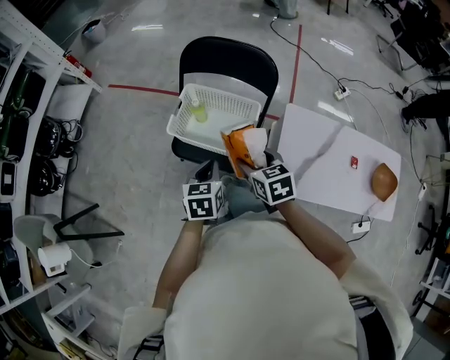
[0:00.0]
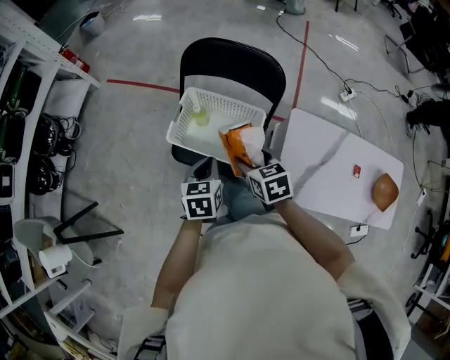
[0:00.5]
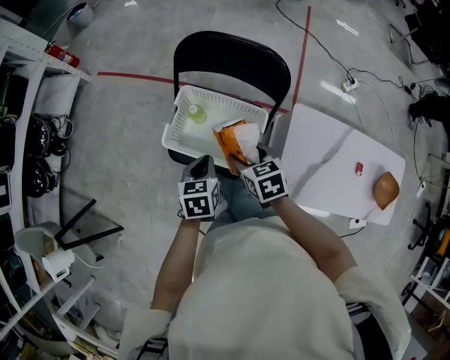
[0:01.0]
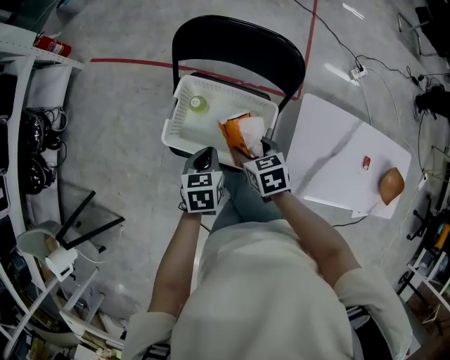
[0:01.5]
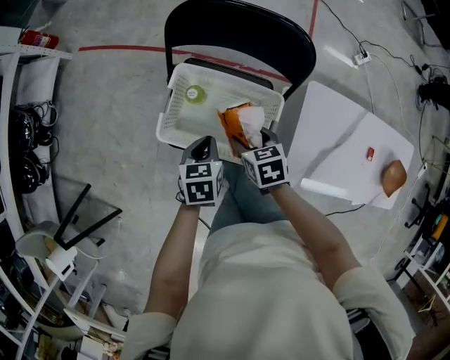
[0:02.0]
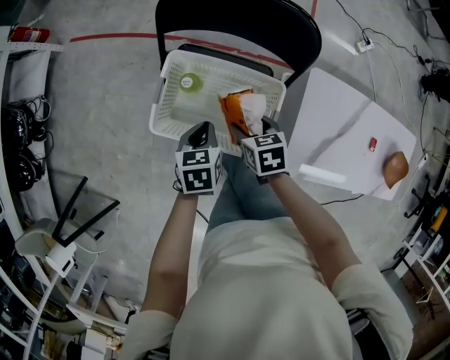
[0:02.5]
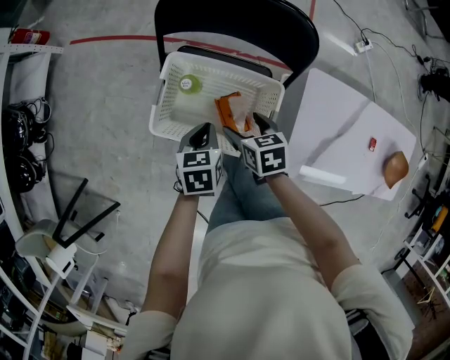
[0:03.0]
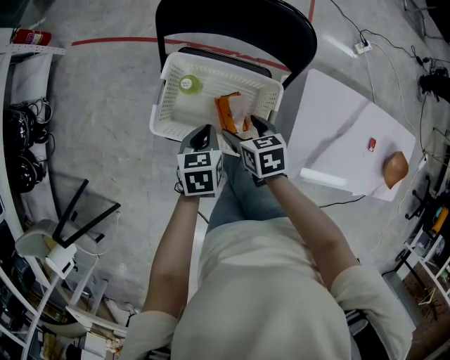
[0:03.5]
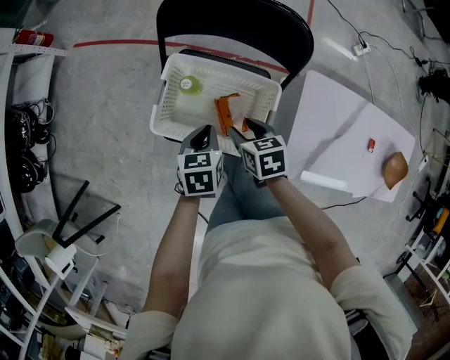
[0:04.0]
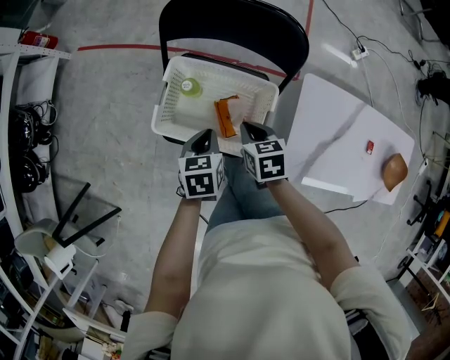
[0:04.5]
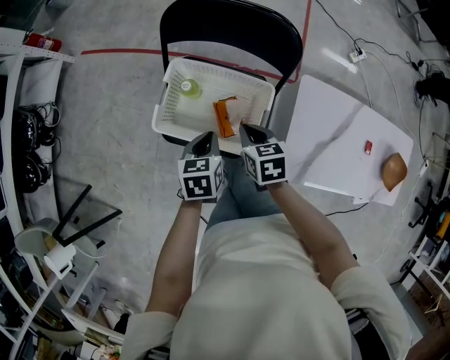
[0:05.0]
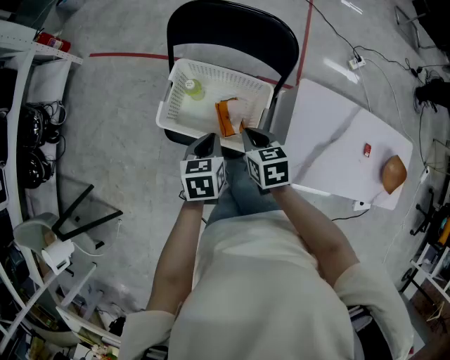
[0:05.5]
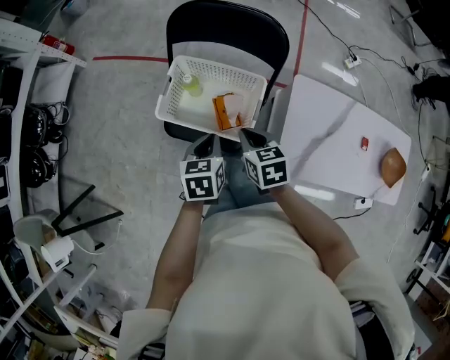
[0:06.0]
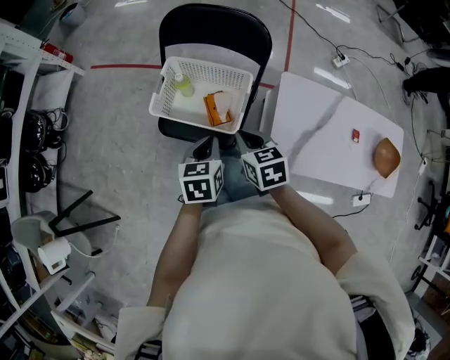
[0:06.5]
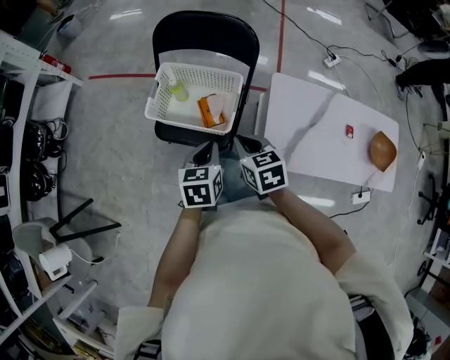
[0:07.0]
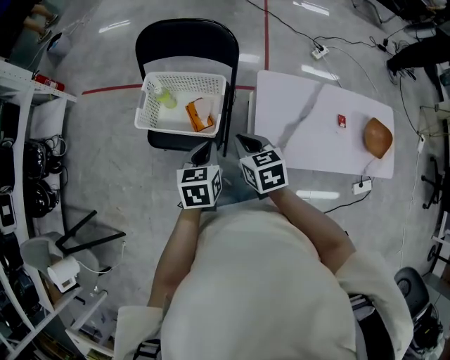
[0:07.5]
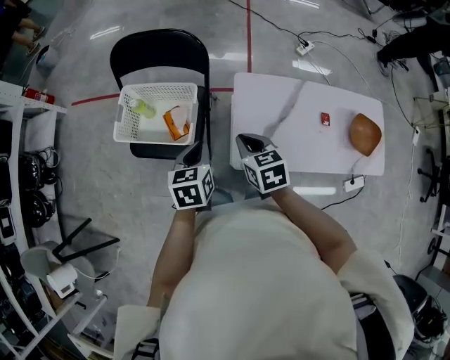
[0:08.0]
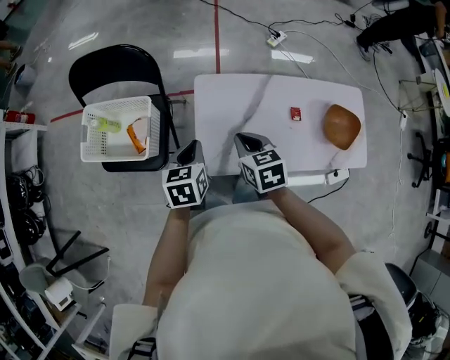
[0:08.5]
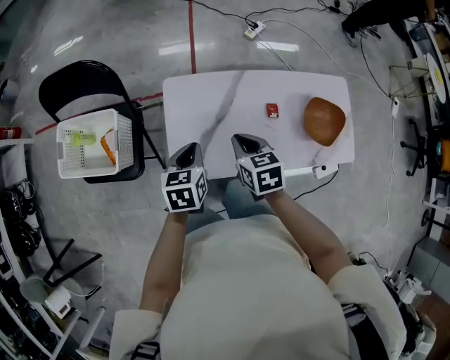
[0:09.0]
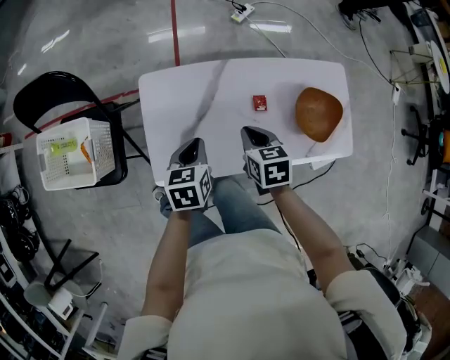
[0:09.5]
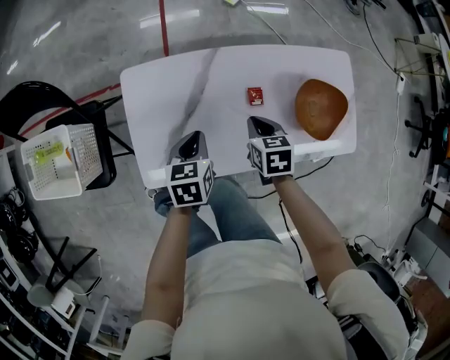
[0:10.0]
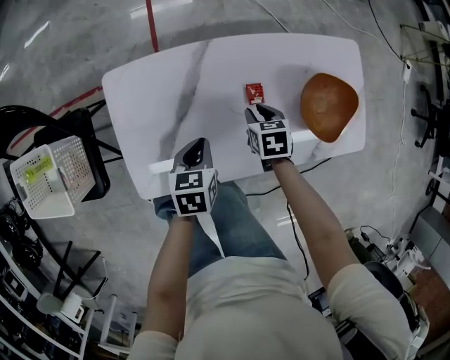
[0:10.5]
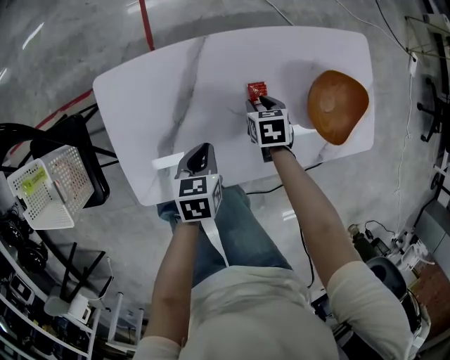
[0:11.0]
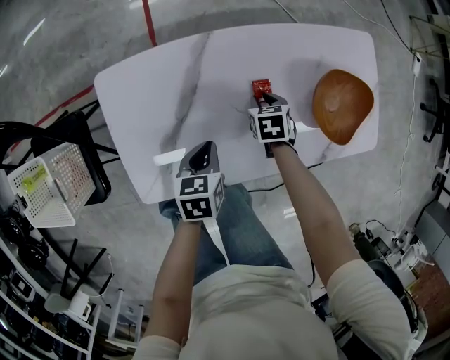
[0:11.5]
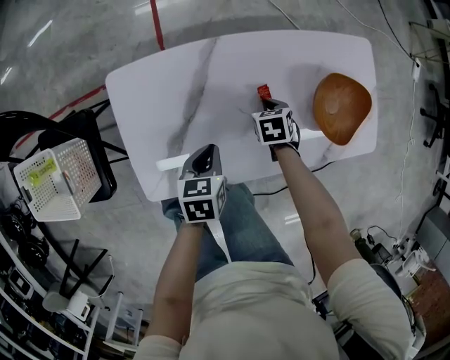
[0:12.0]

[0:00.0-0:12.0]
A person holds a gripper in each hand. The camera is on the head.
0.0 to 2.0 s: The right gripper shifts some 20 cm downward and forward; the left gripper shifts some 20 cm forward and downward.
2.0 to 4.0 s: The grippers make only small movements.
4.0 to 6.0 s: The left gripper heads backward and upward, covering about 10 cm; the right gripper is displaced upward and backward by roughly 10 cm, and closes its fingers.
6.0 to 8.0 s: The two grippers go approximately 20 cm to the right and backward.
8.0 to 10.0 s: Both grippers travel together to the right and downward, approximately 40 cm. The right gripper rotates about 30 degrees.
10.0 to 12.0 s: The left gripper goes some 10 cm downward, while the right gripper goes roughly 15 cm downward.

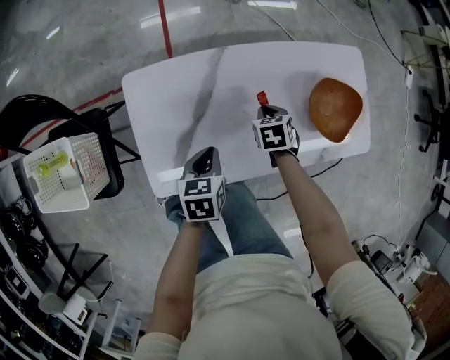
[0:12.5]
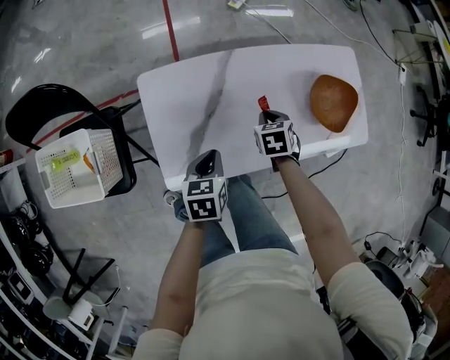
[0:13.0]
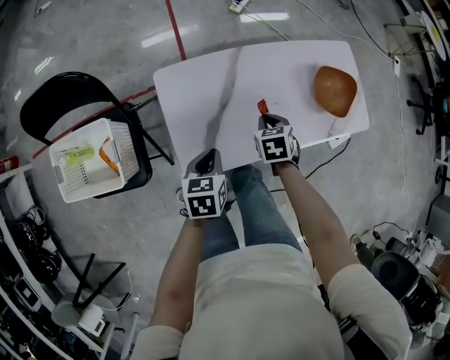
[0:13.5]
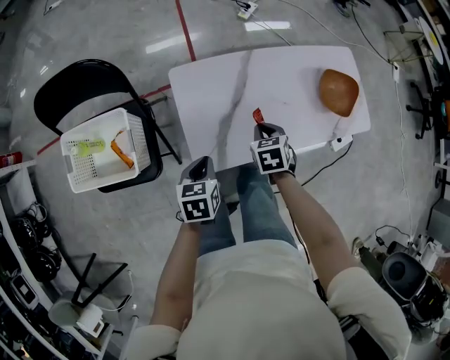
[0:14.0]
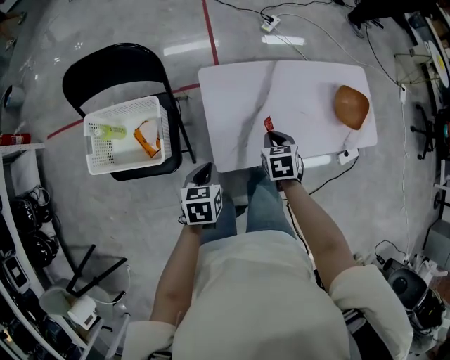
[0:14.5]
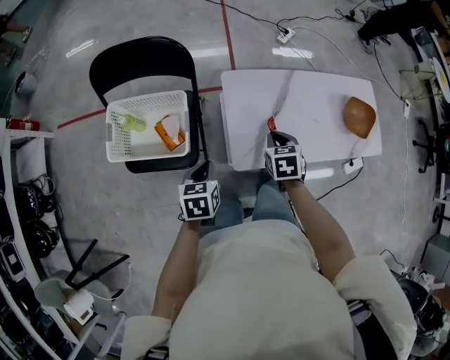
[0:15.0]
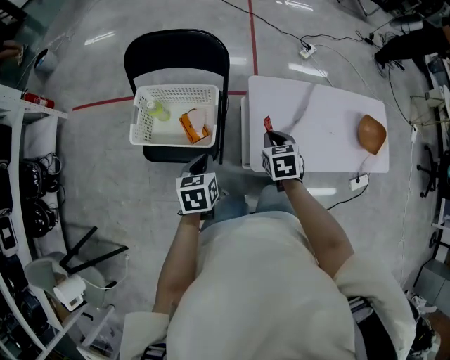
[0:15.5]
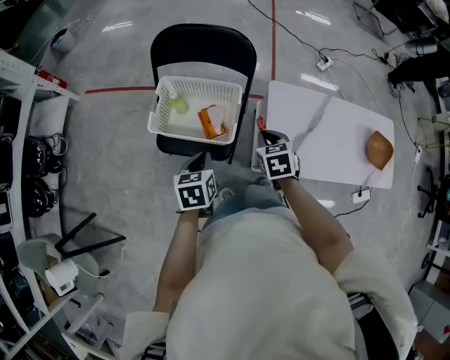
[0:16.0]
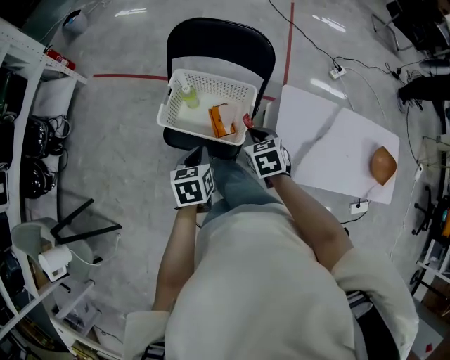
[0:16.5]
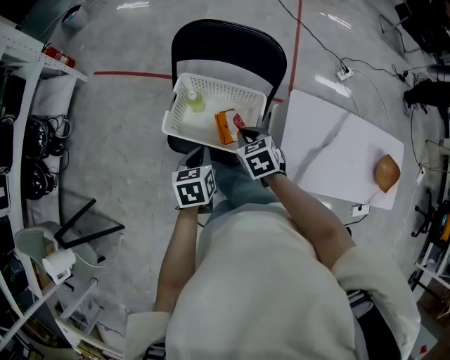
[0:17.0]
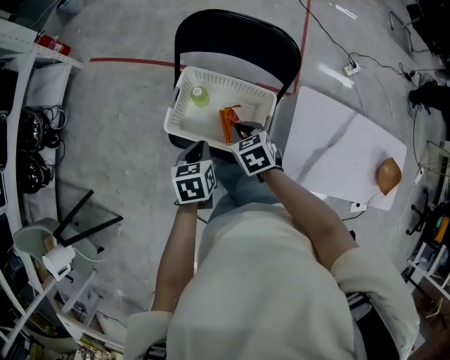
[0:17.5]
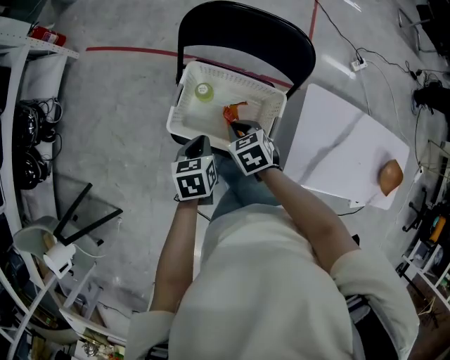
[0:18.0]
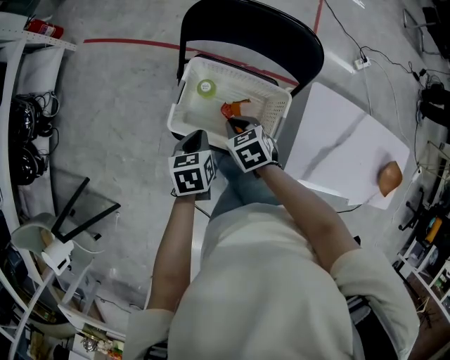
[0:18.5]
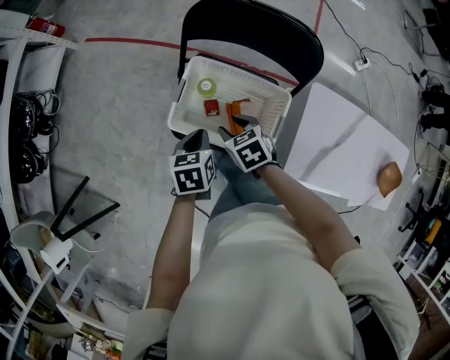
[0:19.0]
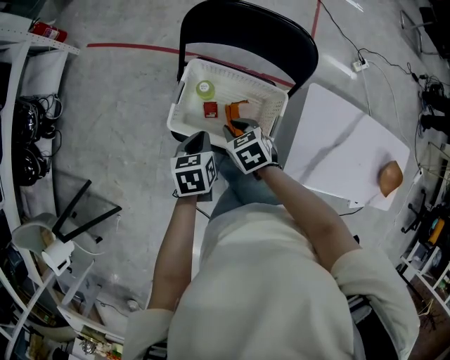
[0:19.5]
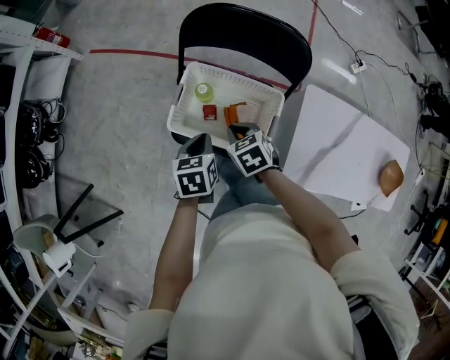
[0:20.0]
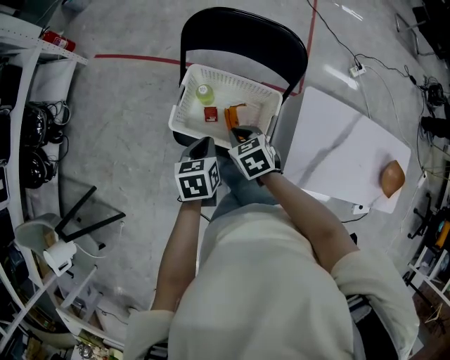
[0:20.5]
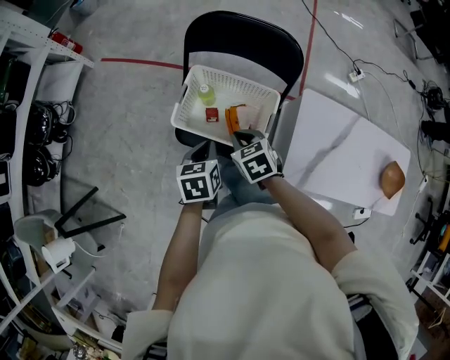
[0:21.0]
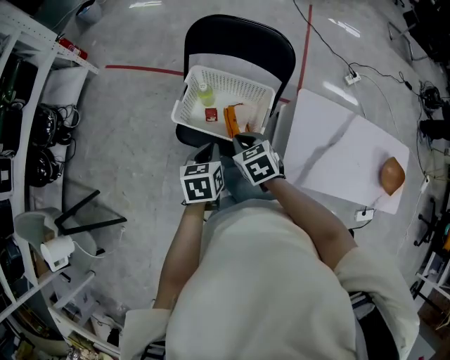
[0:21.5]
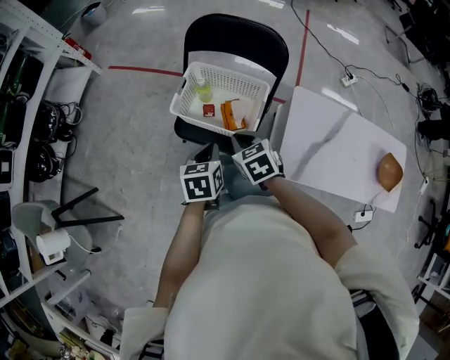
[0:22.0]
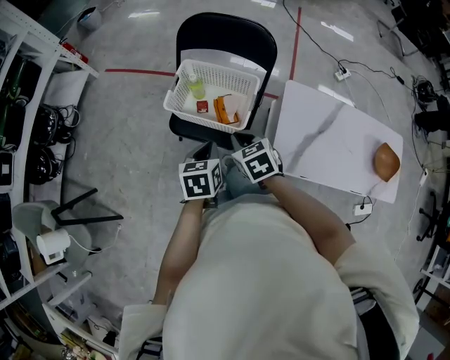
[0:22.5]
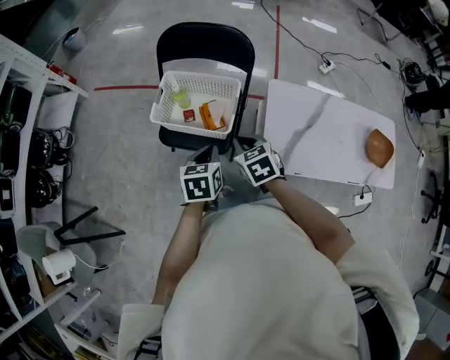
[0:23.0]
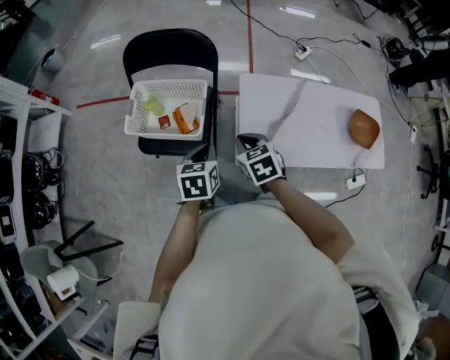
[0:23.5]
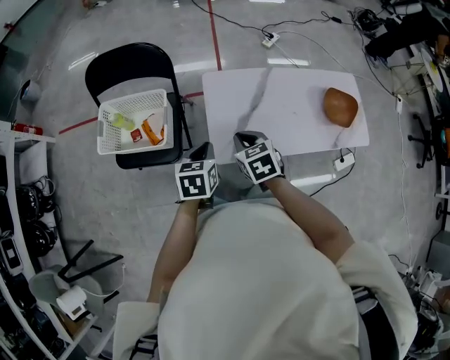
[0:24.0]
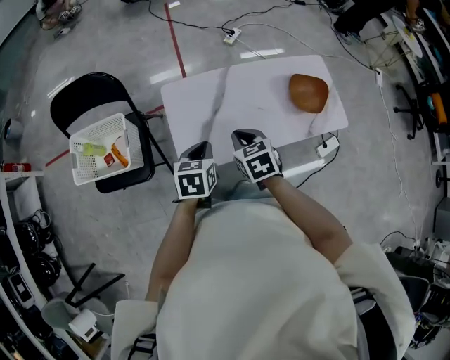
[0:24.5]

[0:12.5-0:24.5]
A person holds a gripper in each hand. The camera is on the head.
12.5 to 14.5 s: The grippers both shift to the left, backward and upward by some 35 cm.
14.5 to 16.5 s: The left gripper moves approximately 30 cm, and swivels approximately 30 degrees; the right gripper moves roughly 35 cm, and turns by approximately 30 degrees.
16.5 to 18.5 s: The left gripper heads forward, downward and to the left, covering approximately 15 cm. Meanwhile the right gripper is displaced to the left, forward and downward by some 20 cm.
18.5 to 20.5 s: The left gripper shifts by about 5 cm, while the right gripper changes place by about 5 cm, and opens and closes again.
20.5 to 22.5 s: The right gripper shifts about 15 cm backward and upward; the left gripper is displaced backward by approximately 15 cm.
22.5 to 24.5 s: The two grippers travel together, some 40 cm. The left gripper turns by approximately 30 degrees, while the right gripper swivels some 30 degrees.

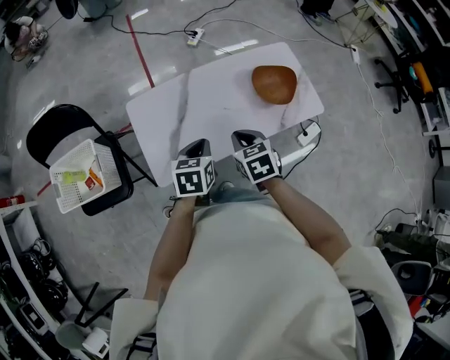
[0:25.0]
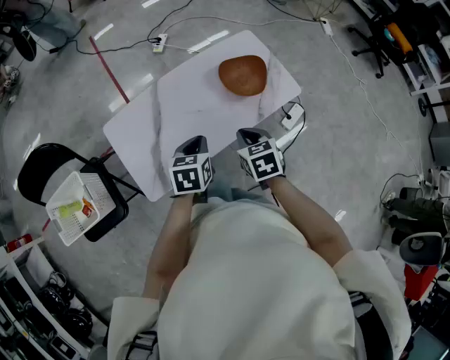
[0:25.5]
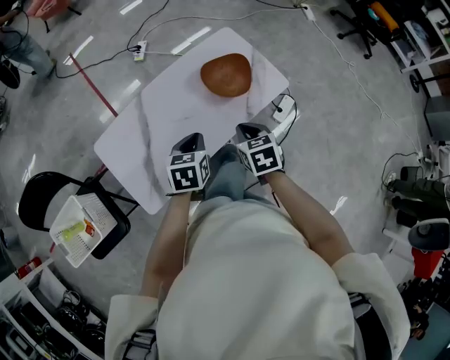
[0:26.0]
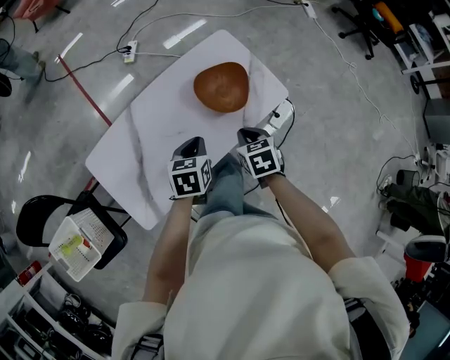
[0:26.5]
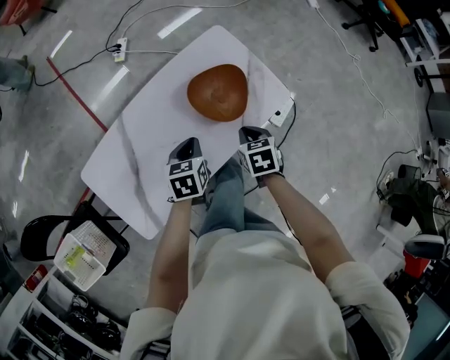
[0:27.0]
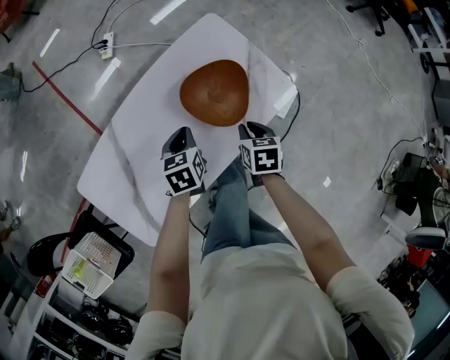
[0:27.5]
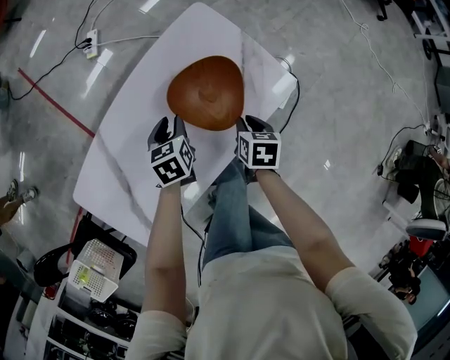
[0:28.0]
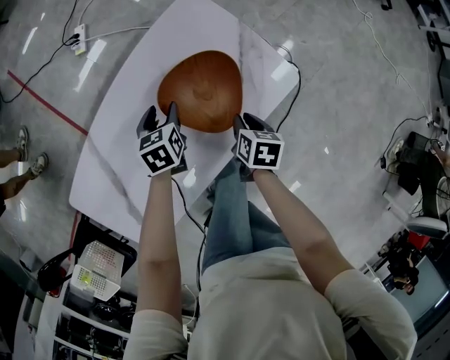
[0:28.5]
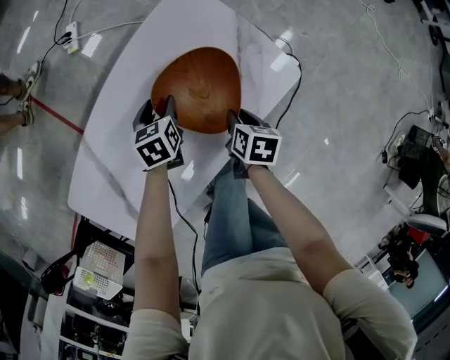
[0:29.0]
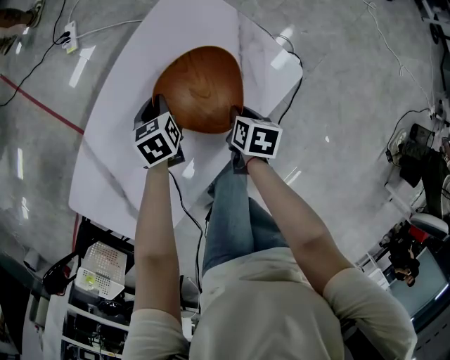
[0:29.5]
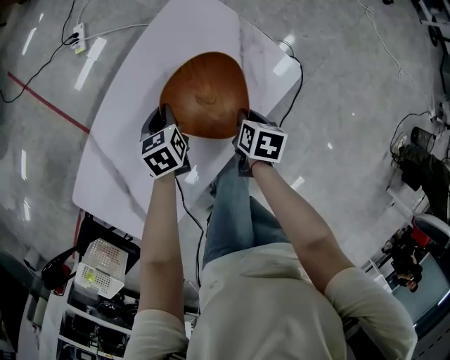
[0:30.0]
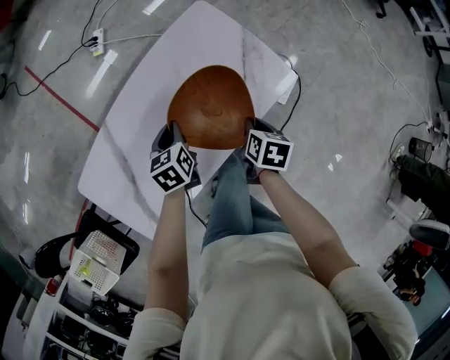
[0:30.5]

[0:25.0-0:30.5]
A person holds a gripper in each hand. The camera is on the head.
25.0 to 27.0 s: The right gripper is displaced to the right, forward and downward by some 30 cm, and swivels some 30 degrees, while the left gripper goes roughly 30 cm forward, to the right and downward.
27.0 to 28.5 s: The right gripper heads downward and forward, covering about 15 cm, and turns by about 30 degrees. The left gripper is displaced forward and downward by about 20 cm, and opens.
28.5 to 30.5 s: The right gripper moves upward, roughly 10 cm. Meanwhile the left gripper travels backward and upward by roughly 10 cm, and closes.
